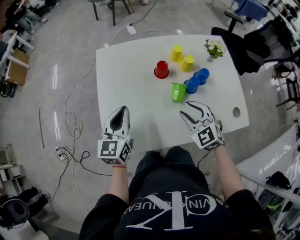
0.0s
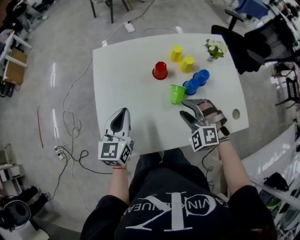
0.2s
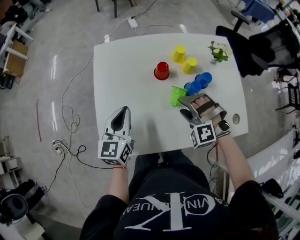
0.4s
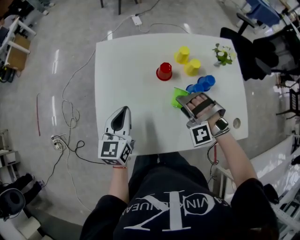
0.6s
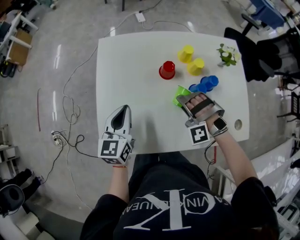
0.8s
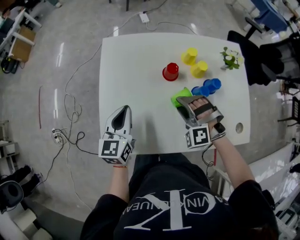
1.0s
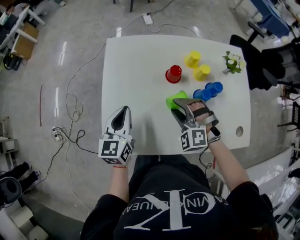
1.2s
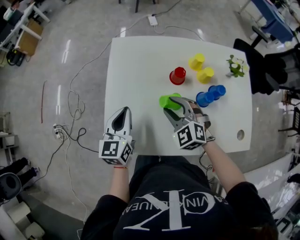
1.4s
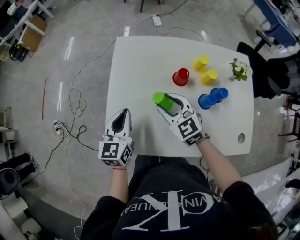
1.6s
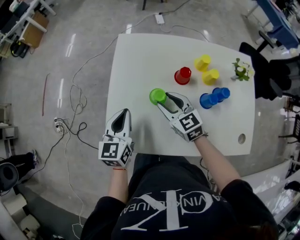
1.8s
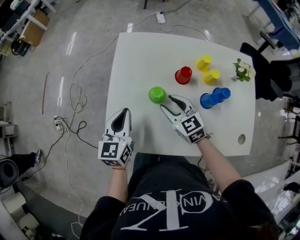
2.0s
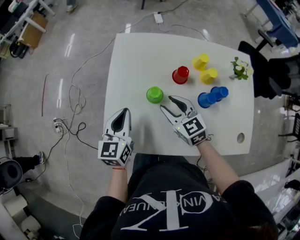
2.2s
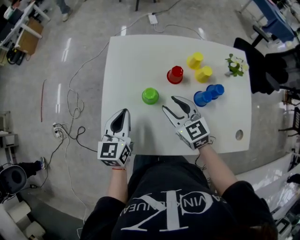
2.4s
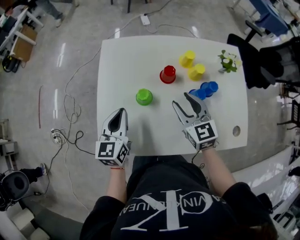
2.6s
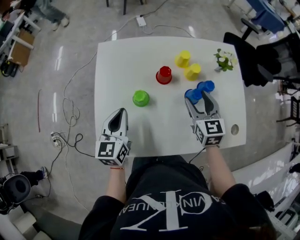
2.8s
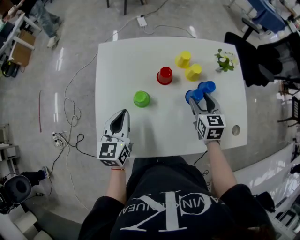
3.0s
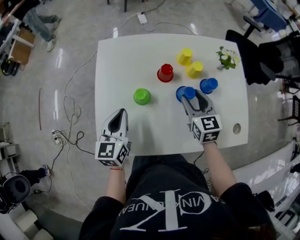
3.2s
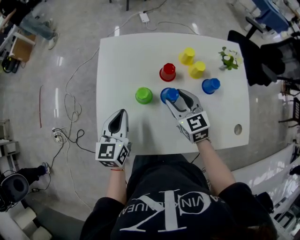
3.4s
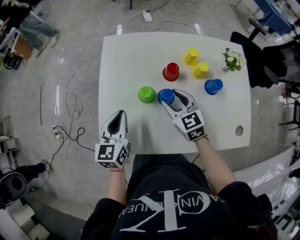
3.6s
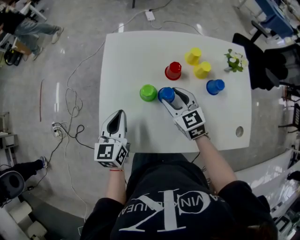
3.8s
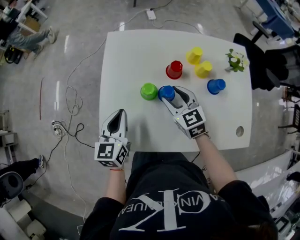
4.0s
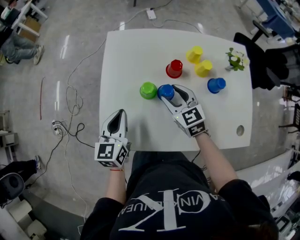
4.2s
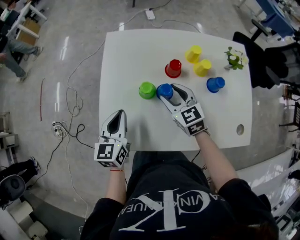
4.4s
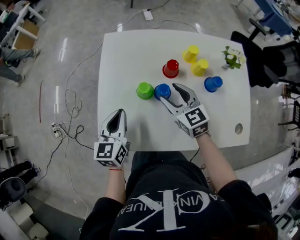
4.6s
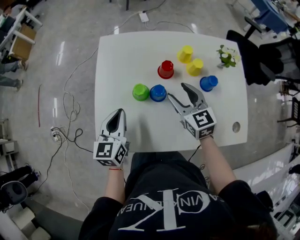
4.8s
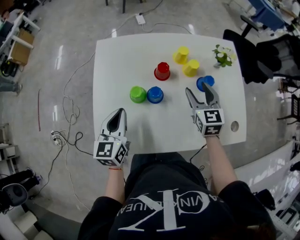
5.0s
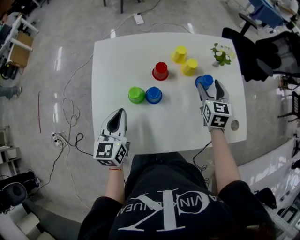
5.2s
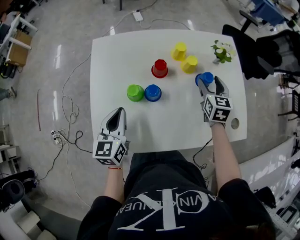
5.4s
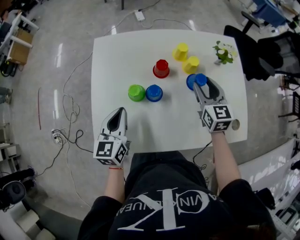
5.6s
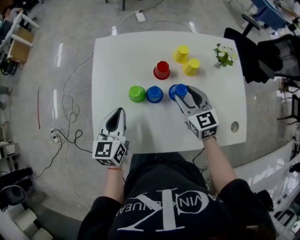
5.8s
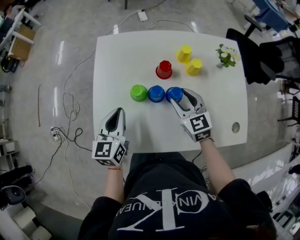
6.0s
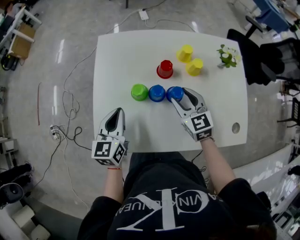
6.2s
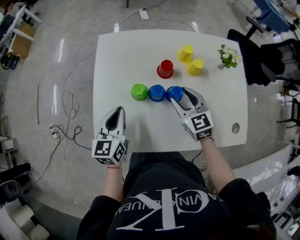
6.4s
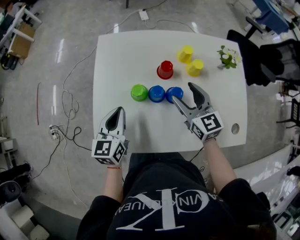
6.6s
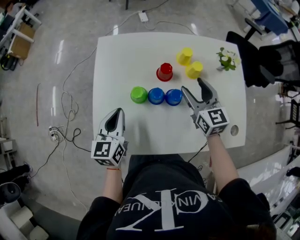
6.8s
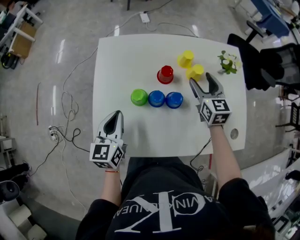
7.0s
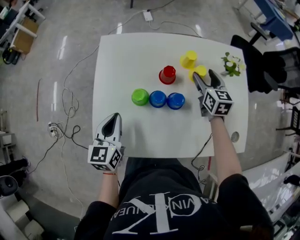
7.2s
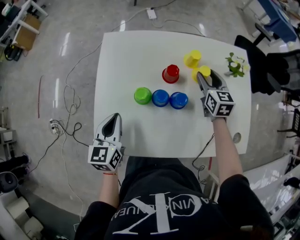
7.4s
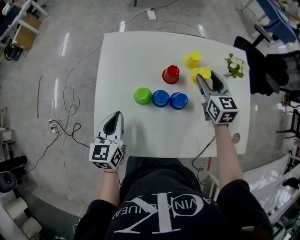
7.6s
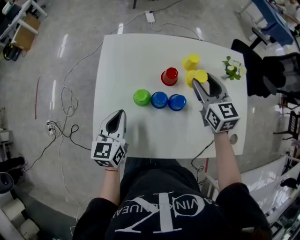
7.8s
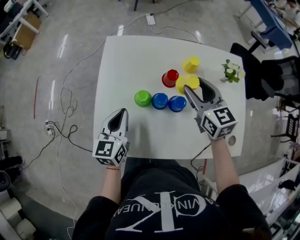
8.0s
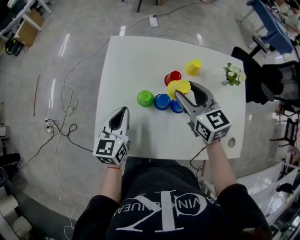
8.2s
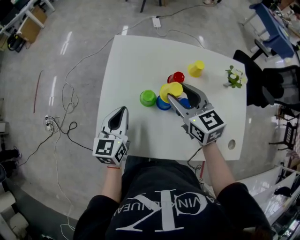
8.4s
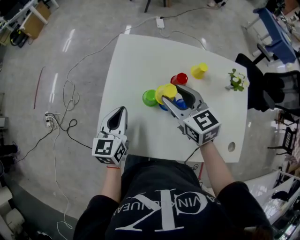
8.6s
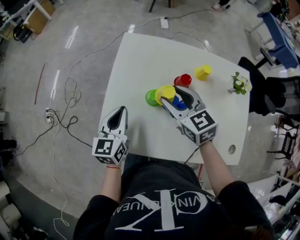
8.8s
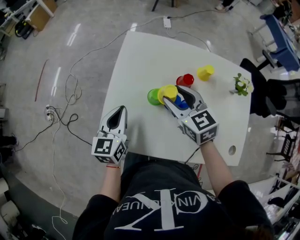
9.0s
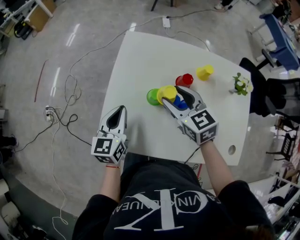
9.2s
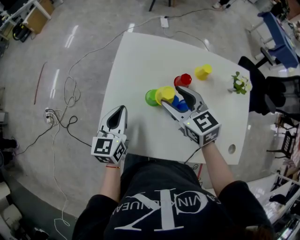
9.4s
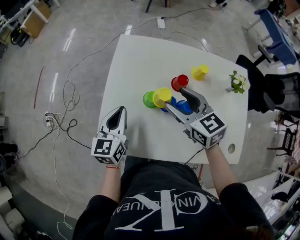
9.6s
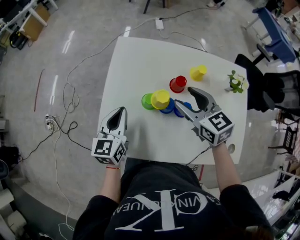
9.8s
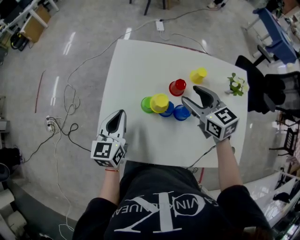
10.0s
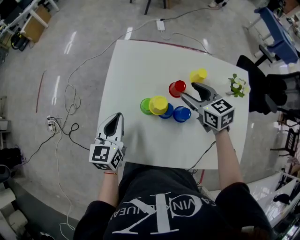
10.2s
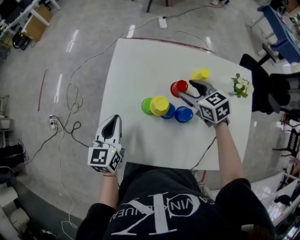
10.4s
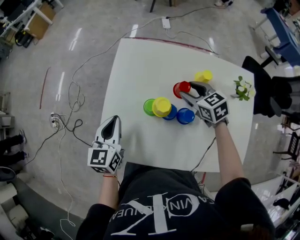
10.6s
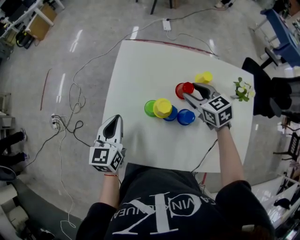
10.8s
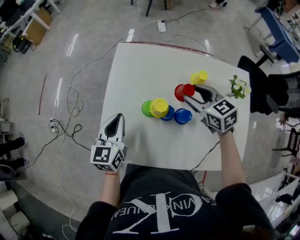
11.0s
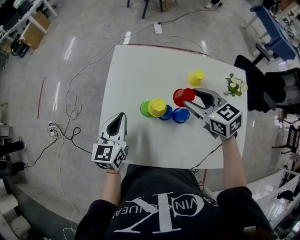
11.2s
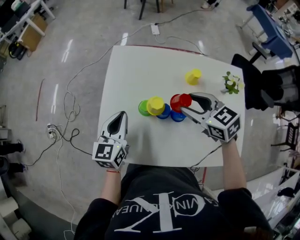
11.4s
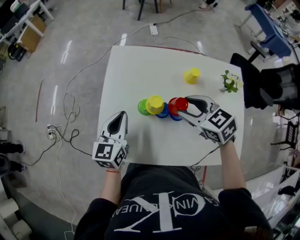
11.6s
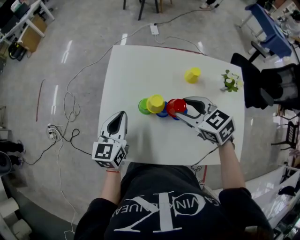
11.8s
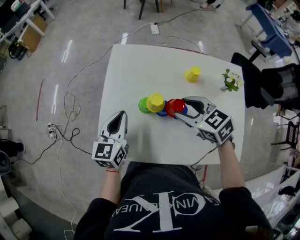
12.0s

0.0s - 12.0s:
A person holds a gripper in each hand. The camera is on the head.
0.0s - 1.6s: The right gripper shifts roughly 15 cm to the left and forward, and swivels some 20 degrees.
1.6s - 3.0s: The left gripper travels to the right by roughly 5 cm; the right gripper travels to the right by roughly 20 cm, and swivels roughly 40 degrees.
3.0s - 4.4s: The right gripper moves to the left, some 15 cm, and changes its angle by roughly 30 degrees; the left gripper changes place by about 5 cm.
4.4s - 6.0s: The right gripper travels to the right and back again, about 25 cm each way.
6.0s - 7.6s: The right gripper shifts some 15 cm forward and to the right.
7.6s - 9.0s: The right gripper heads to the left, covering some 20 cm, and changes its angle by some 30 degrees.
9.0s - 10.4s: The right gripper heads to the right, downward and forward, covering roughly 15 cm.
10.4s - 12.0s: The right gripper moves backward, upward and to the left, about 15 cm.

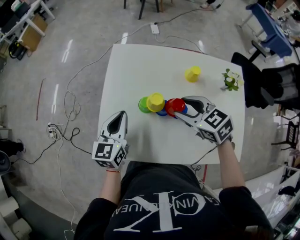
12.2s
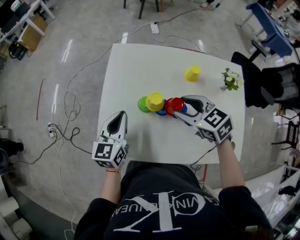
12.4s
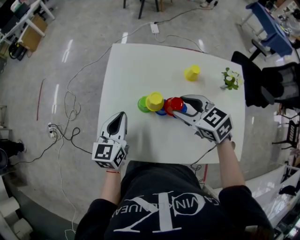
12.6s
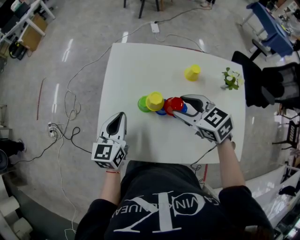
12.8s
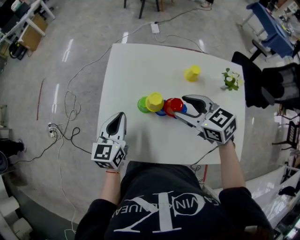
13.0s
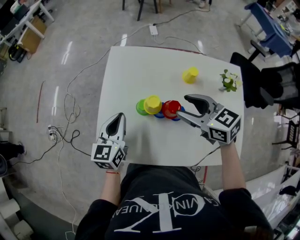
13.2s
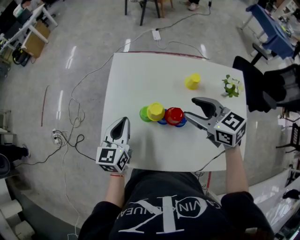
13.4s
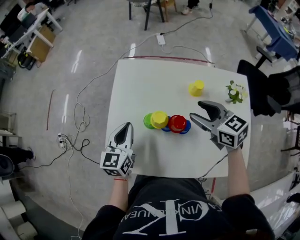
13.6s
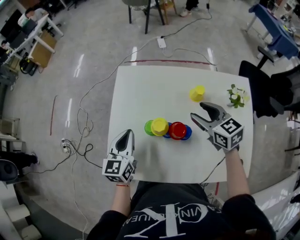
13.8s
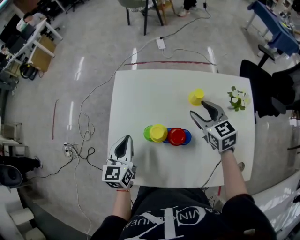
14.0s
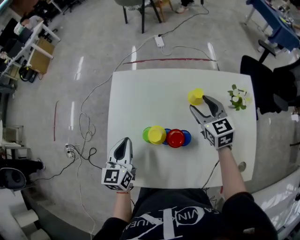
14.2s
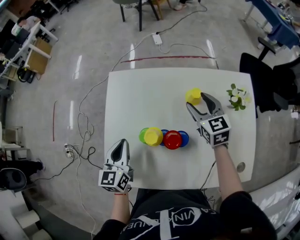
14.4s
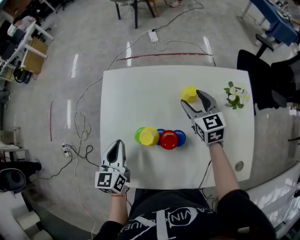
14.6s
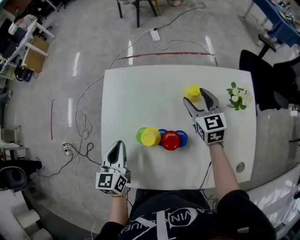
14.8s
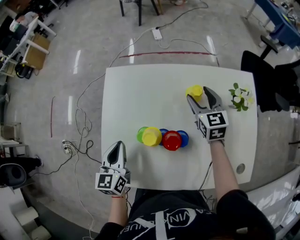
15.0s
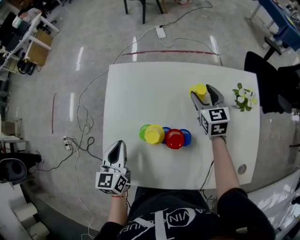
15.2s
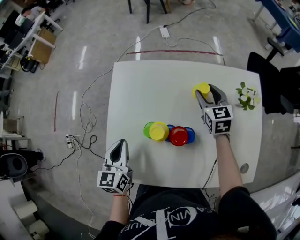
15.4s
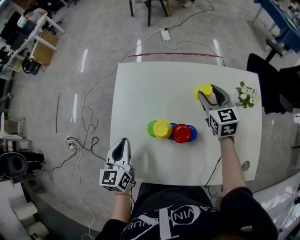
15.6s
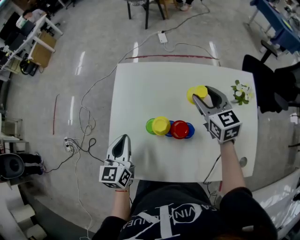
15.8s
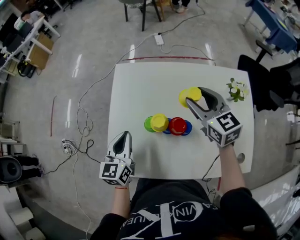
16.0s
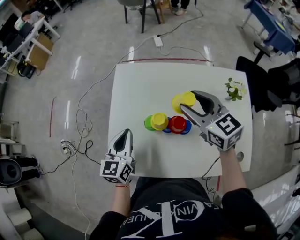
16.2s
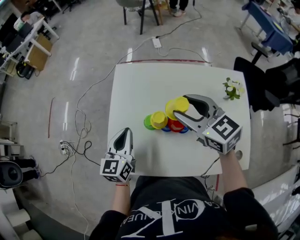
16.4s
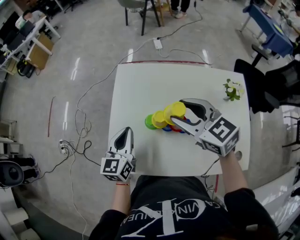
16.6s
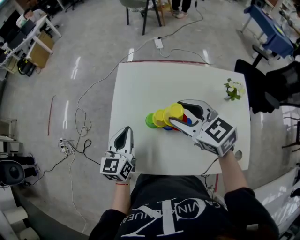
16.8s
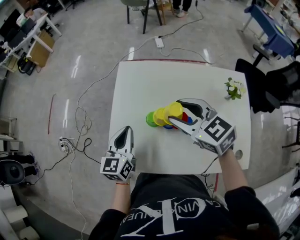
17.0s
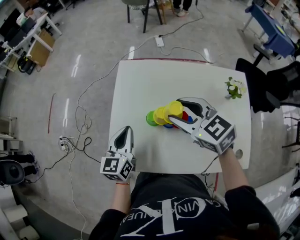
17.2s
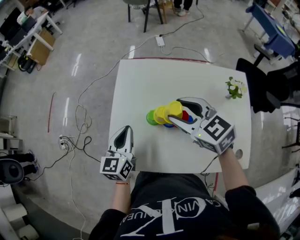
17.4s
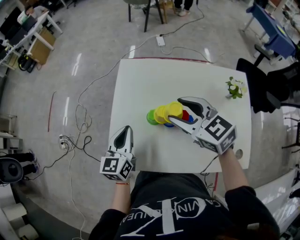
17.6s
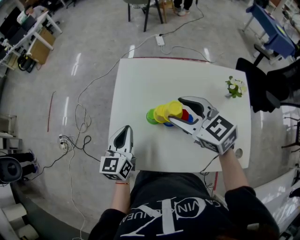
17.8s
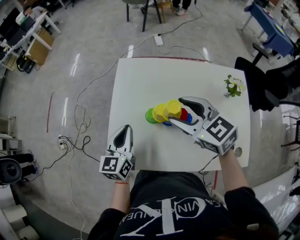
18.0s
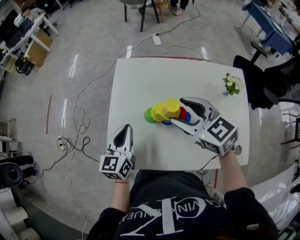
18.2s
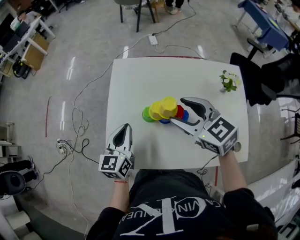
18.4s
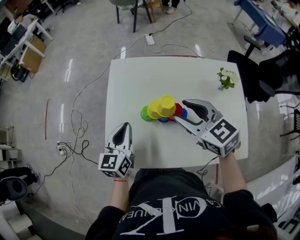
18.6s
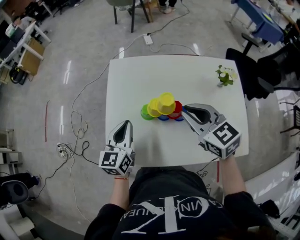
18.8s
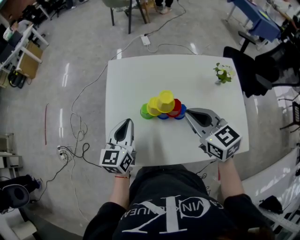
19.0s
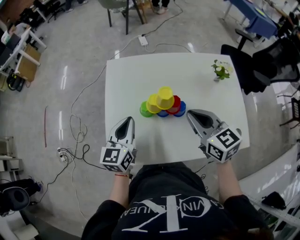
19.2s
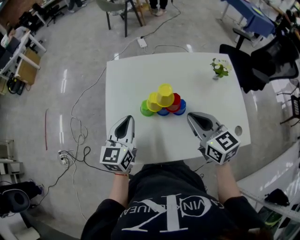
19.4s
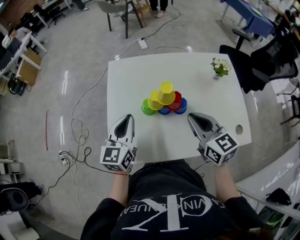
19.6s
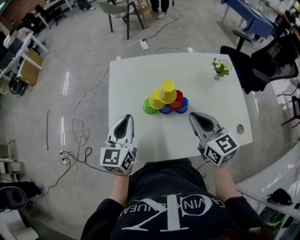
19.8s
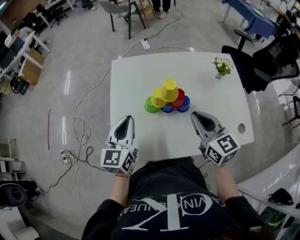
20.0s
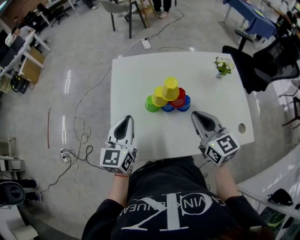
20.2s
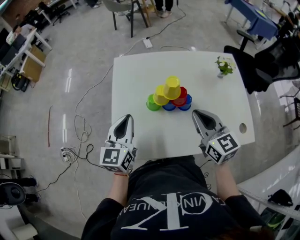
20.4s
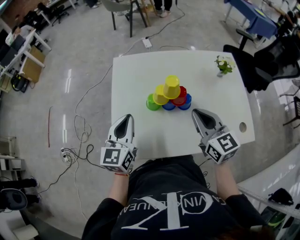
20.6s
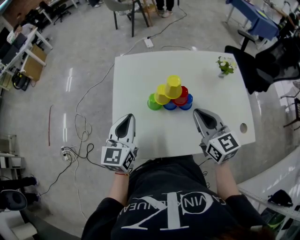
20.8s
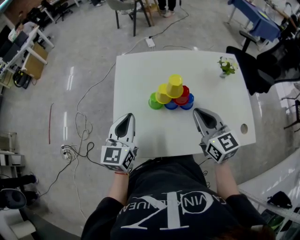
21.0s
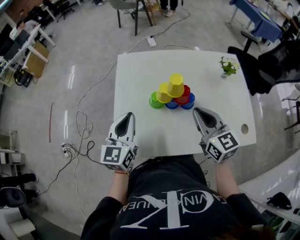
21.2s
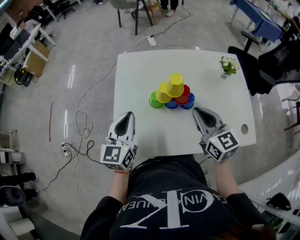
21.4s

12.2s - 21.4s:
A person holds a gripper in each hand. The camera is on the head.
12.2s - 13.8s: The right gripper moves to the right and forward, roughly 10 cm.
13.8s - 15.2s: The right gripper is displaced forward, downward and to the right by roughly 15 cm, and turns by approximately 20 degrees.
15.2s - 16.8s: The right gripper shifts about 30 cm to the left, upward and backward, and turns by about 40 degrees. The left gripper ends up roughly 5 cm from where it was.
16.8s - 18.4s: The grippers move only a little.
18.4s - 19.8s: The right gripper travels backward by roughly 10 cm, swivels some 30 degrees, and closes its fingers.
19.8s - 21.4s: The grippers stay close to where they were, moving slightly.

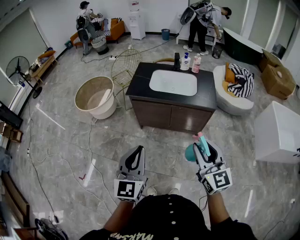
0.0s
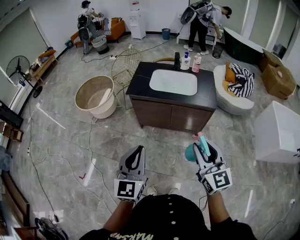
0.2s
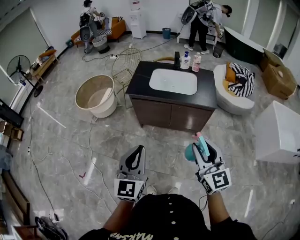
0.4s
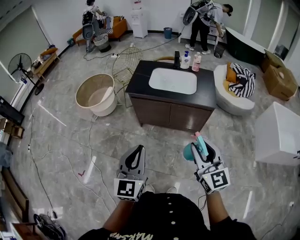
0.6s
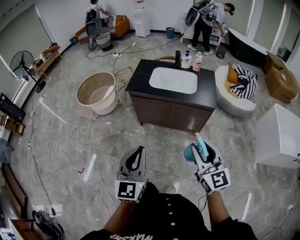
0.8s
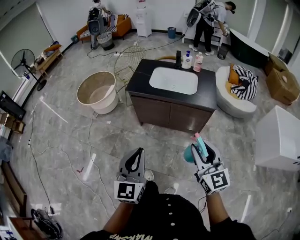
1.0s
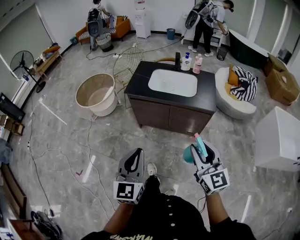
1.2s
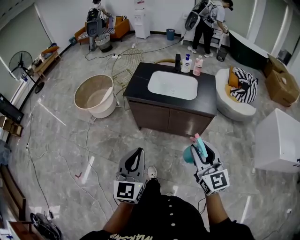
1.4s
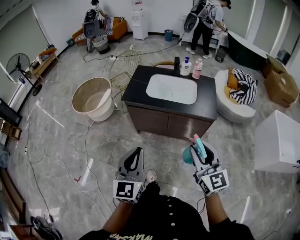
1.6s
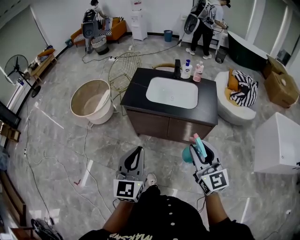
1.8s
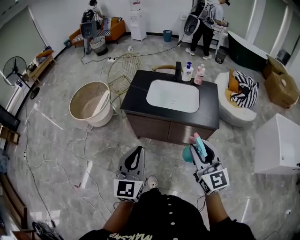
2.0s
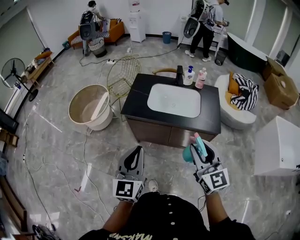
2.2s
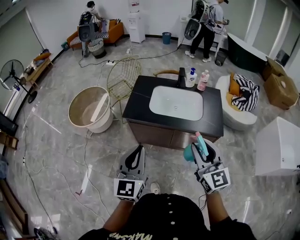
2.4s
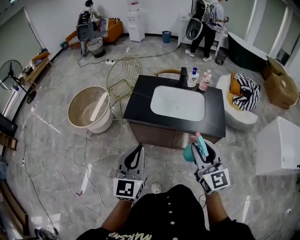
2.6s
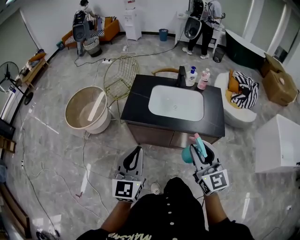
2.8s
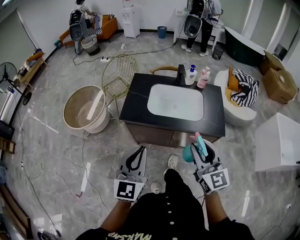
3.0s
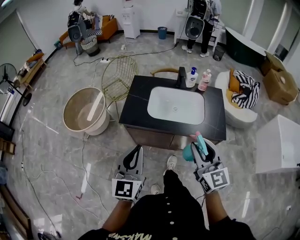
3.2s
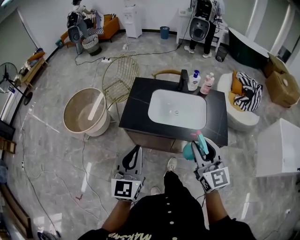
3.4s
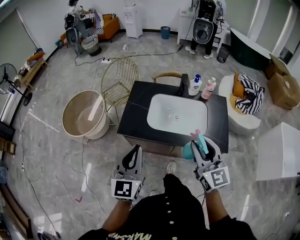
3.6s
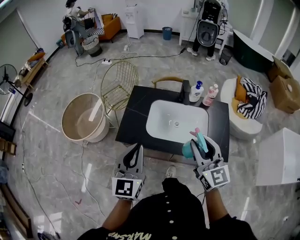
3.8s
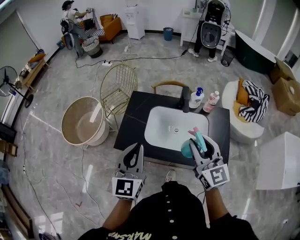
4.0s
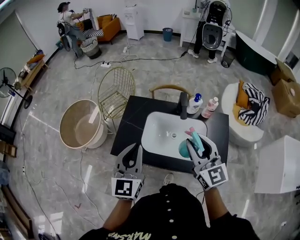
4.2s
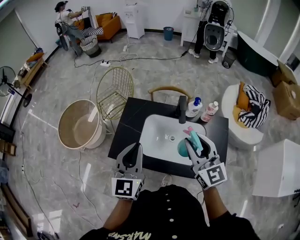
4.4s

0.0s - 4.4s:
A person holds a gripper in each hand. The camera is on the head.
0.0s - 1.4s: The right gripper moves some 5 cm. Meanwhile the left gripper moves approximately 5 cm.
1.4s - 3.0s: Both grippers travel together forward, about 25 cm.
3.0s - 4.4s: Both grippers move forward, about 30 cm.
